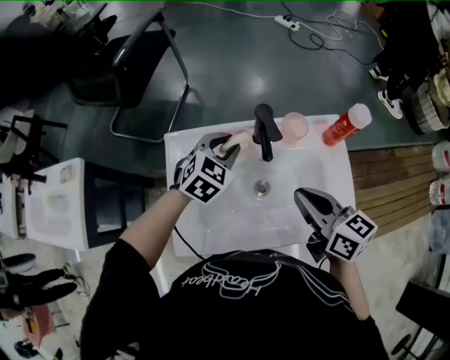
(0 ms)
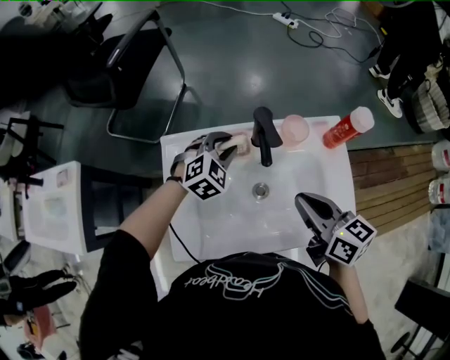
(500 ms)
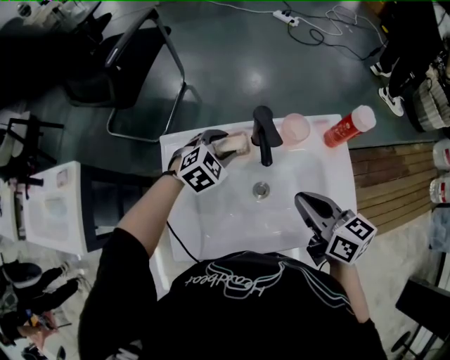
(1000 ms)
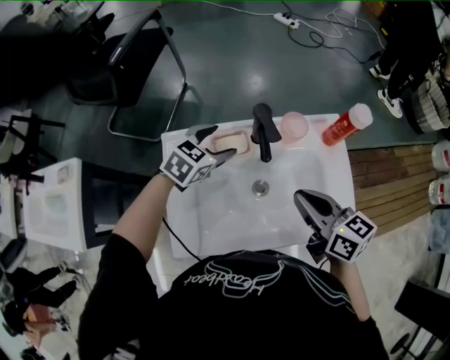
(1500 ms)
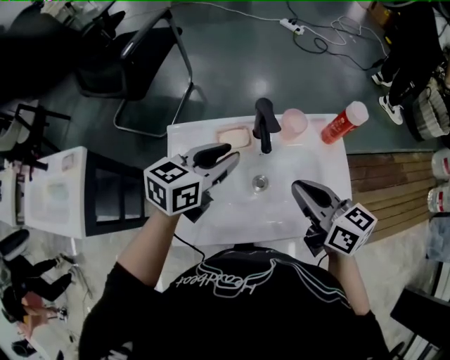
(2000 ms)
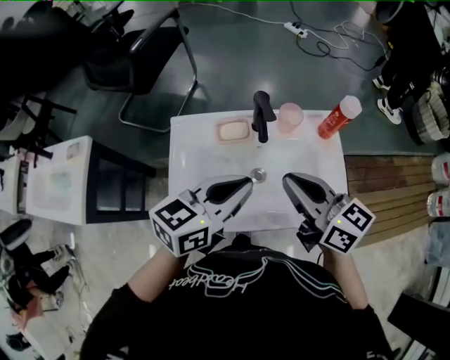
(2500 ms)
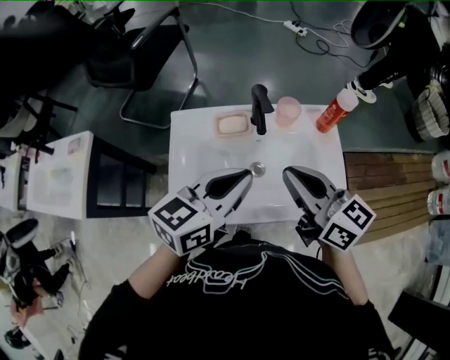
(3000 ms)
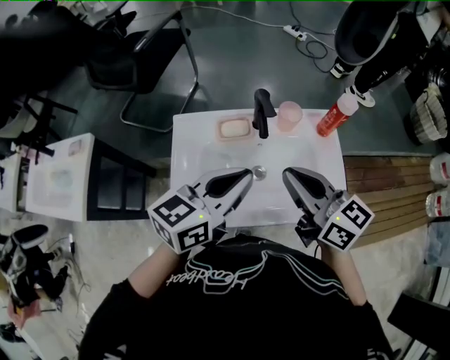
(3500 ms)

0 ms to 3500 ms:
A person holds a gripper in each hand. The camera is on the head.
0 ms to 2000 ms: The left gripper shifts roughly 10 cm upward and backward, swivels about 40 degrees, and opens, then closes again.
2000 ms to 3500 ms: The left gripper heads backward and upward, covering roughly 15 cm. The right gripper travels upward by approximately 5 cm.

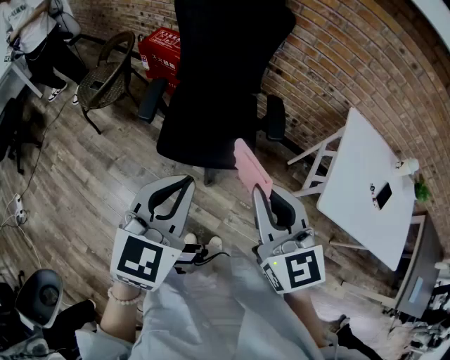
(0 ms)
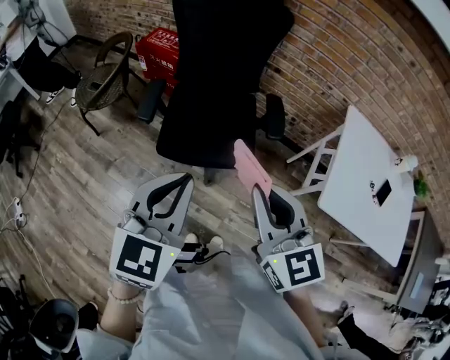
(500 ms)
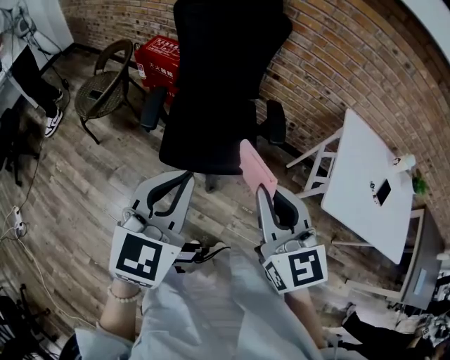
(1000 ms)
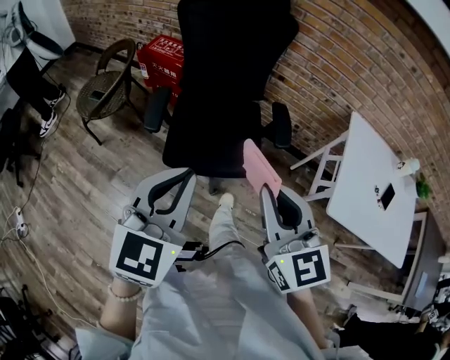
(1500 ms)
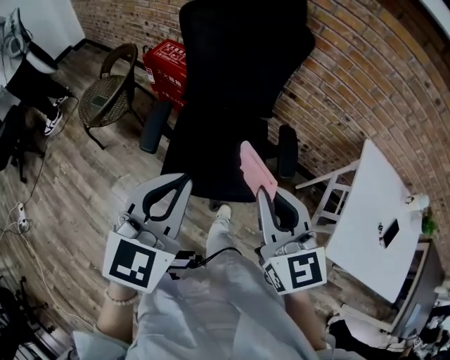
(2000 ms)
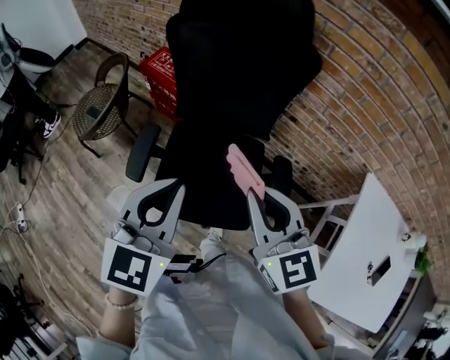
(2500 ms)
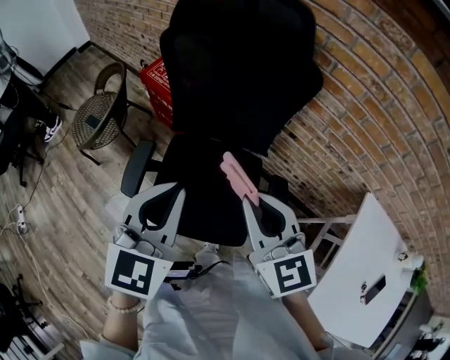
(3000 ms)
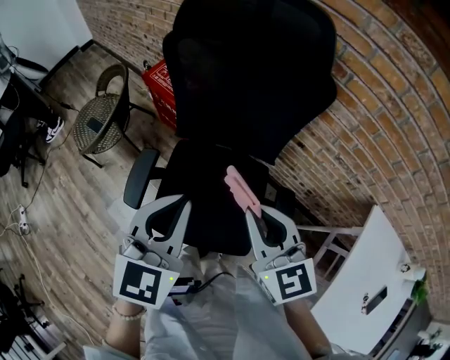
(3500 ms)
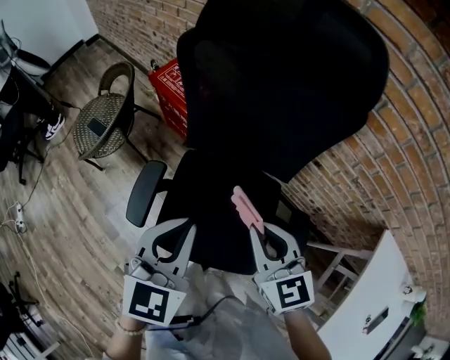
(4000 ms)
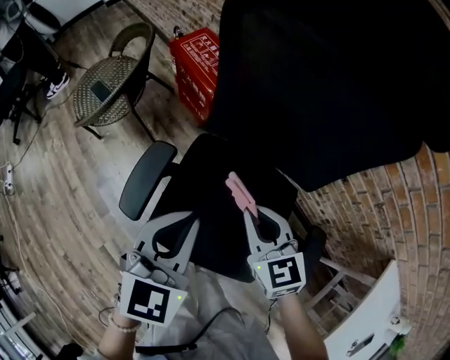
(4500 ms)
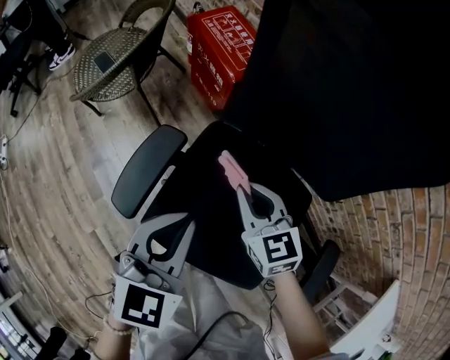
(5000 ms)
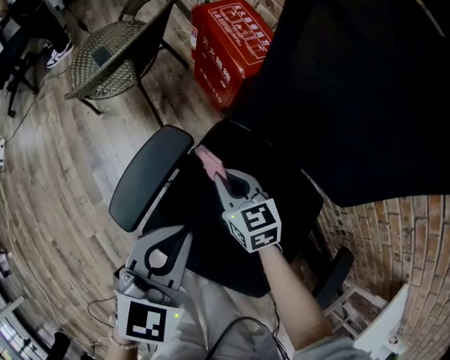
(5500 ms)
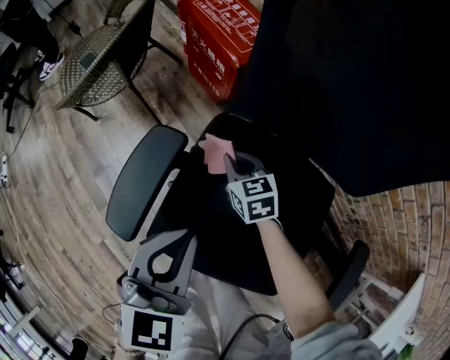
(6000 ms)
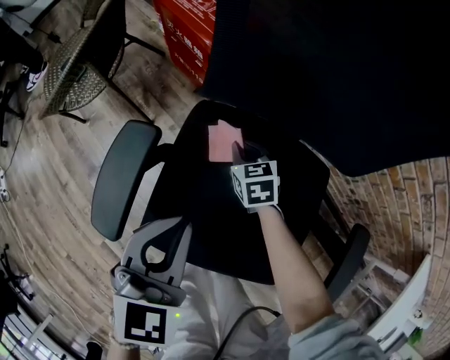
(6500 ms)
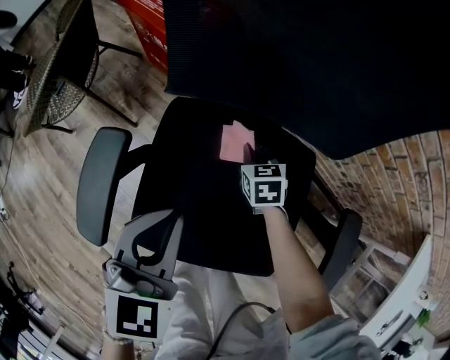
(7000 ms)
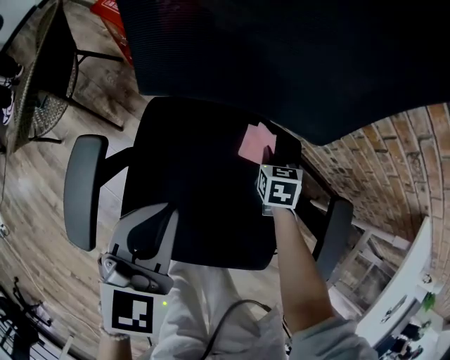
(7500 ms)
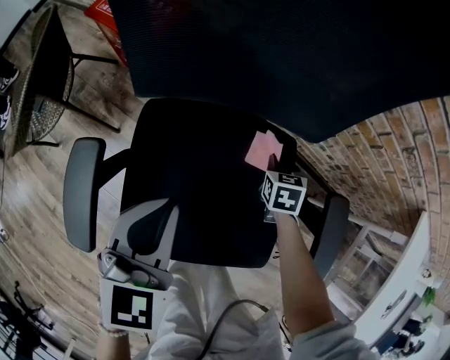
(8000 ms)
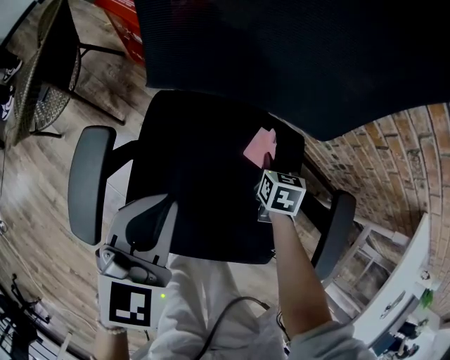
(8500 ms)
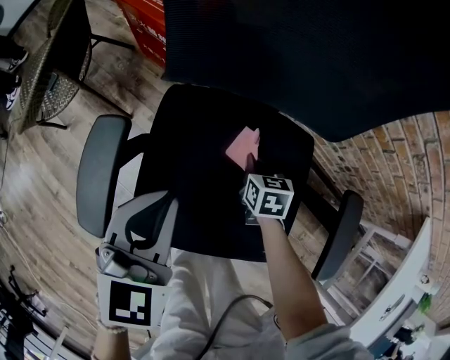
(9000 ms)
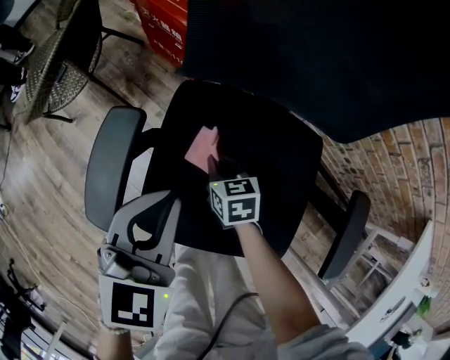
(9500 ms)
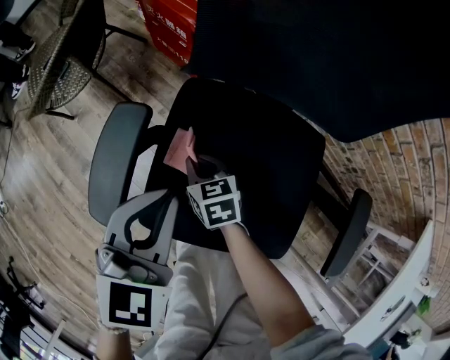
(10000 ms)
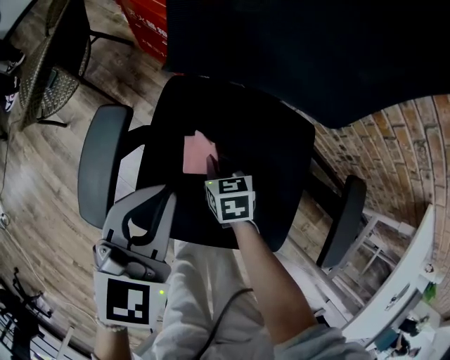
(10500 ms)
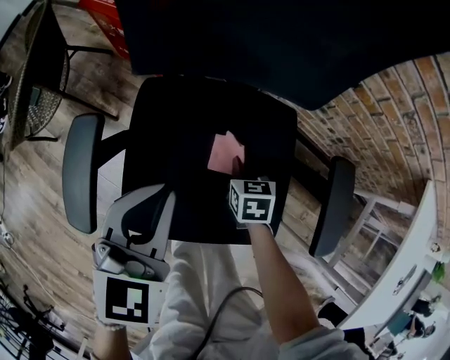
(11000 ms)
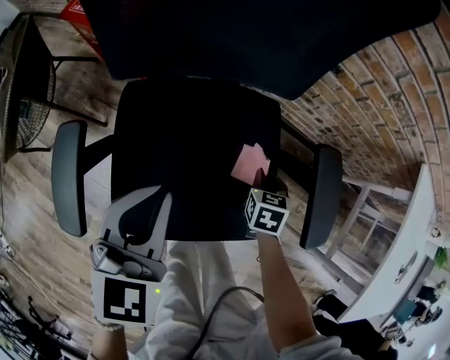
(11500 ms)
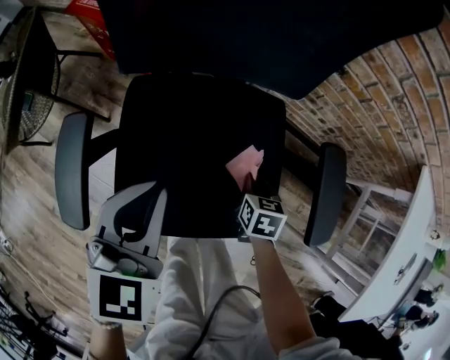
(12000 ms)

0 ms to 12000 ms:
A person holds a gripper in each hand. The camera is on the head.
0 ms to 2000 ms: The grippers both shift forward by some 15 cm.
2000 ms to 4000 ms: The right gripper heads forward and downward, covering approximately 30 cm; the left gripper heads forward, covering some 30 cm.
4000 ms to 6000 ms: The left gripper travels downward by some 25 cm. The right gripper travels downward and forward by about 50 cm, and changes its angle by roughly 20 degrees.
6000 ms to 8000 ms: The left gripper moves some 10 cm. The right gripper ends up approximately 35 cm from where it was, and swivels approximately 50 degrees.
8000 ms to 10000 ms: The right gripper shifts by roughly 35 cm, and swivels roughly 40 degrees. Meanwhile the left gripper changes place by some 10 cm.
10000 ms to 12000 ms: The left gripper changes place by approximately 10 cm. The right gripper moves some 30 cm, and rotates roughly 40 degrees.

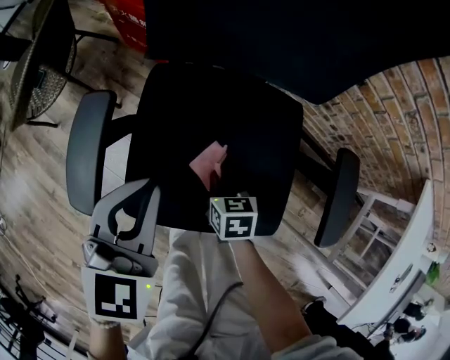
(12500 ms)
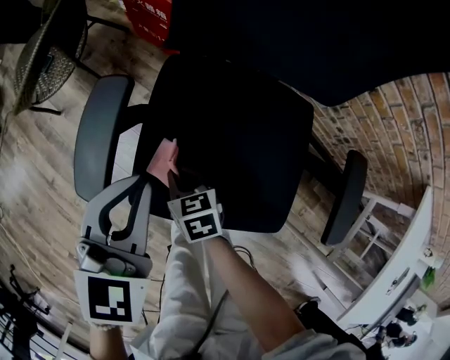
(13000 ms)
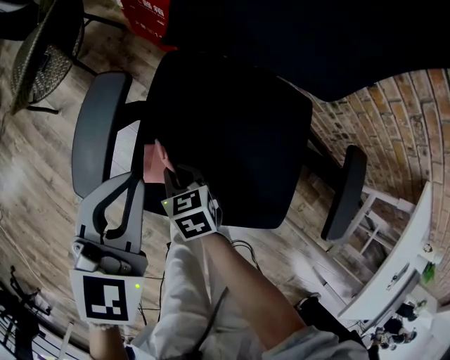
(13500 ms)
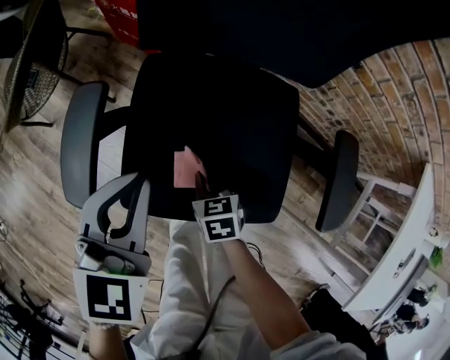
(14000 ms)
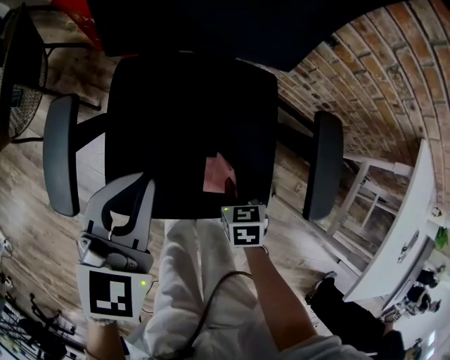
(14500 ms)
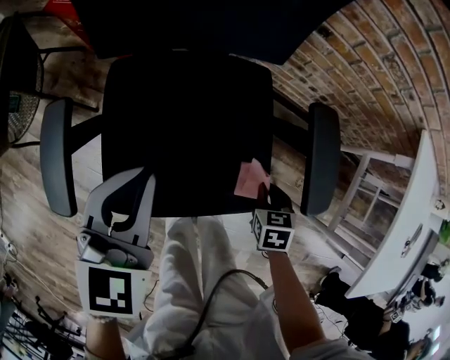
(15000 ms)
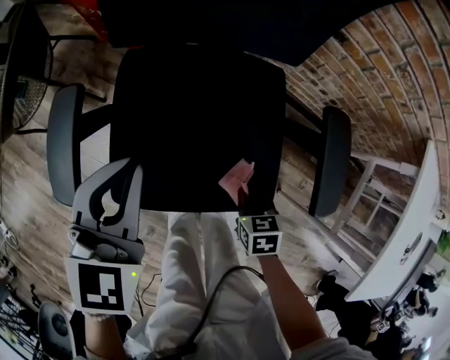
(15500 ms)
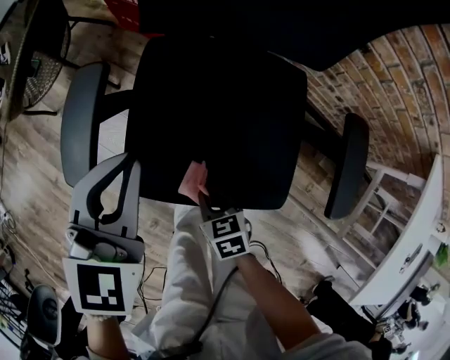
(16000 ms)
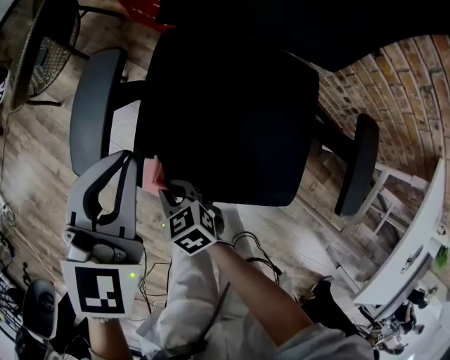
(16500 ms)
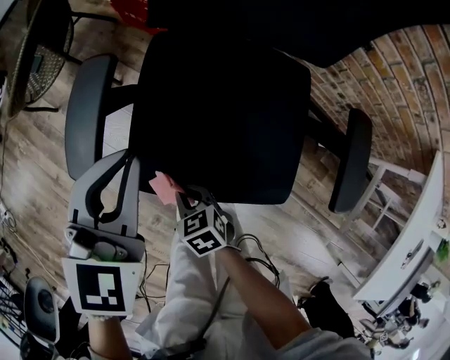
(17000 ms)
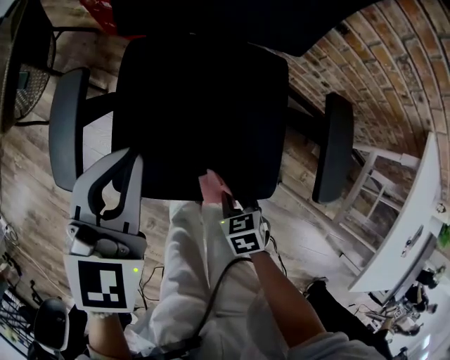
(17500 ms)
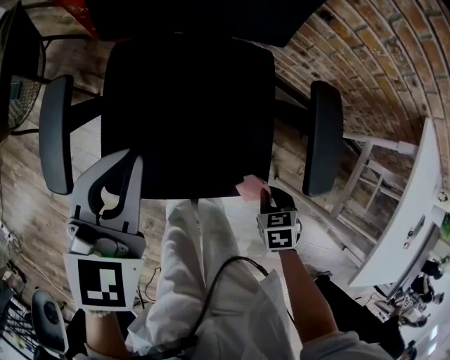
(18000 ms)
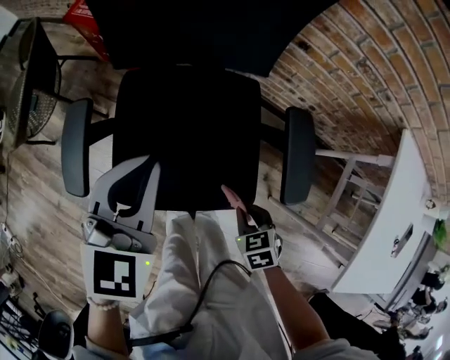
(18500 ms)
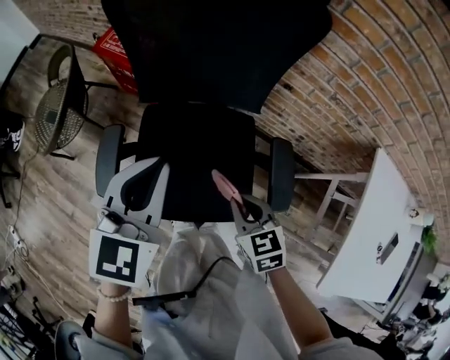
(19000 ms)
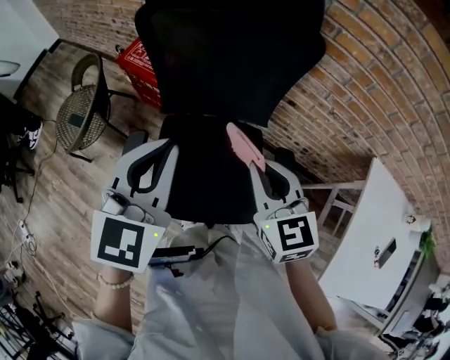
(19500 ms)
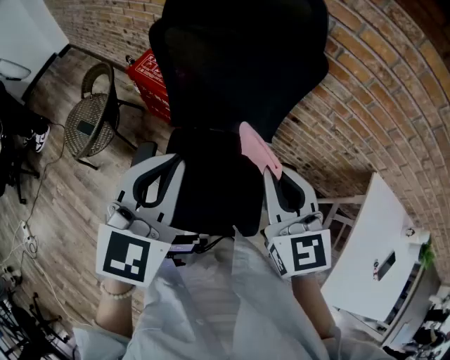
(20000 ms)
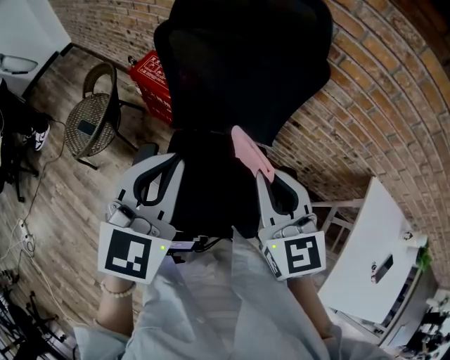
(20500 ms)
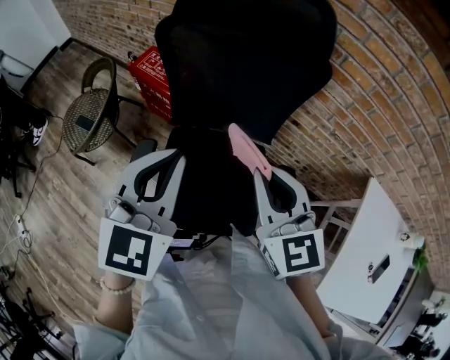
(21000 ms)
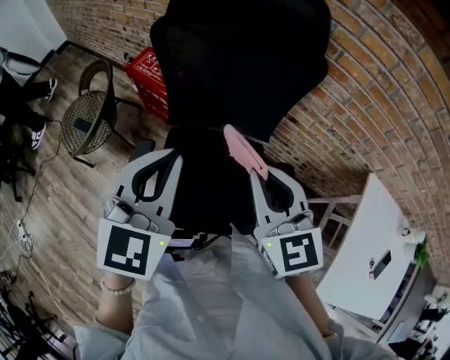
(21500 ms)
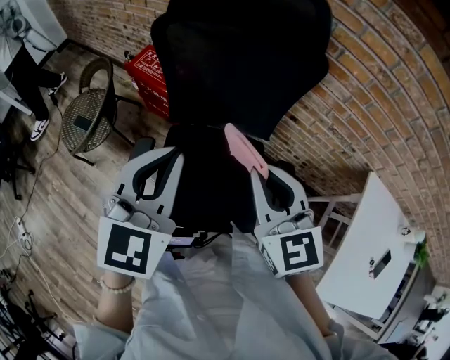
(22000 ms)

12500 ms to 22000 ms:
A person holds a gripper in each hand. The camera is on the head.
12500 ms to 14500 ms: The right gripper changes place by approximately 15 cm, while the left gripper shifts by roughly 5 cm.
14500 ms to 16500 ms: The left gripper changes place by roughly 10 cm. Meanwhile the right gripper changes place by some 30 cm, and turns by some 40 degrees.
16500 ms to 18000 ms: The left gripper moves approximately 10 cm, while the right gripper moves some 40 cm, and rotates some 40 degrees.
18000 ms to 20000 ms: The right gripper travels upward by roughly 60 cm, and tips its fingers upward by some 60 degrees. The left gripper is displaced upward by some 35 cm.
20000 ms to 22000 ms: The grippers move only a little.

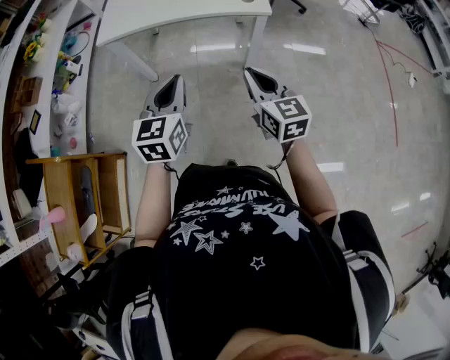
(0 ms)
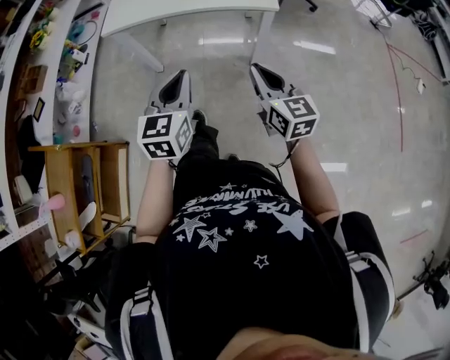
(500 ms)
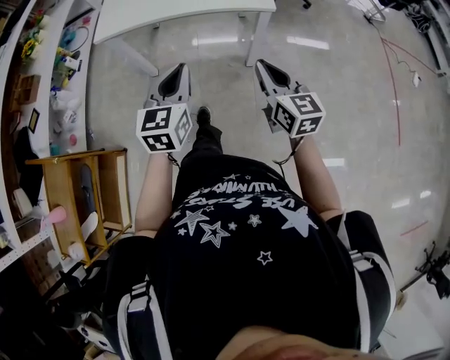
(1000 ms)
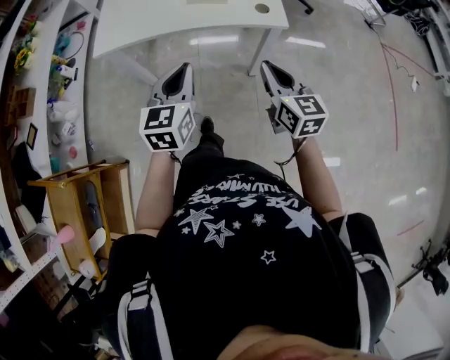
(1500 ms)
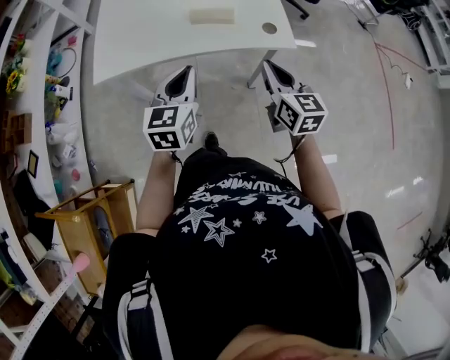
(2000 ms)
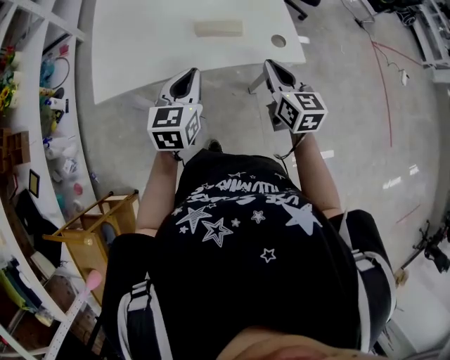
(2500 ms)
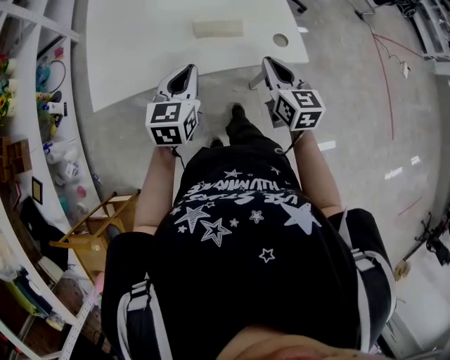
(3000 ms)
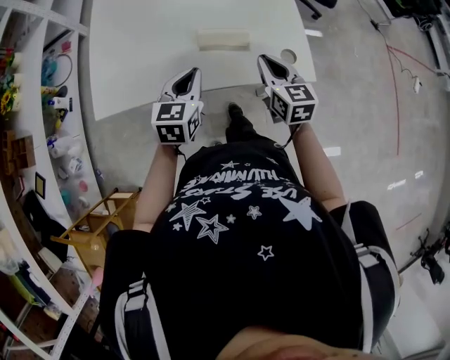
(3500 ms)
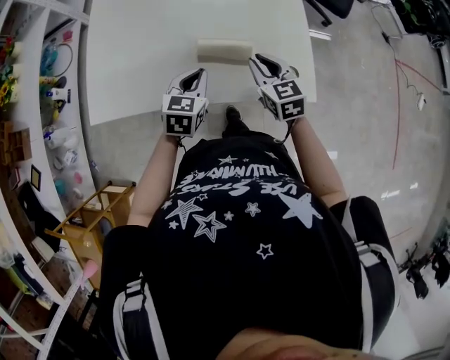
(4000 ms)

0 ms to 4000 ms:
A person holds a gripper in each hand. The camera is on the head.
0 ms to 2000 ms: The two grippers go some 25 cm forward.
2000 ms to 4000 ms: The right gripper is displaced forward by approximately 25 cm, and rotates roughly 20 degrees, while the left gripper heads forward and downward, covering some 25 cm.
